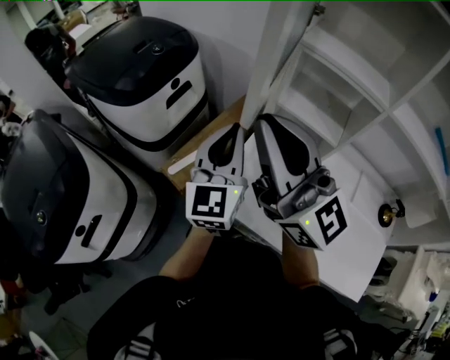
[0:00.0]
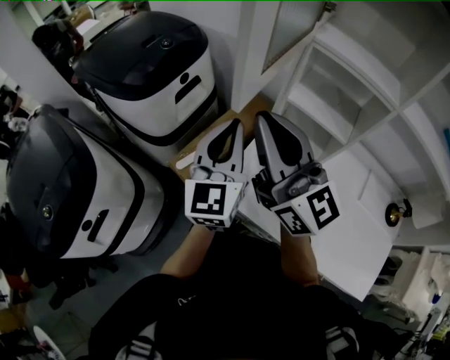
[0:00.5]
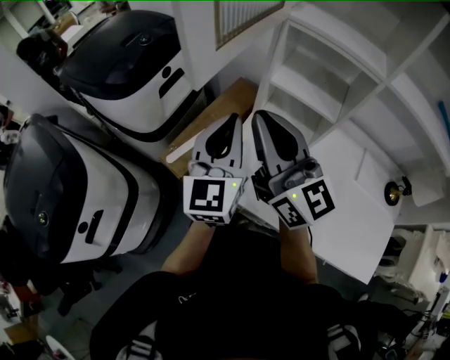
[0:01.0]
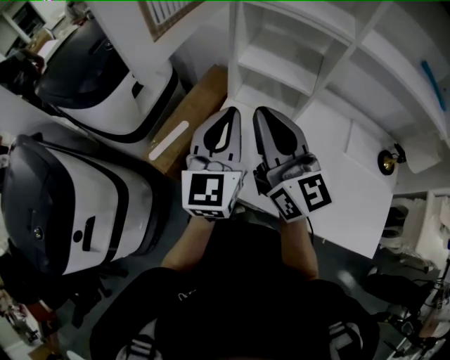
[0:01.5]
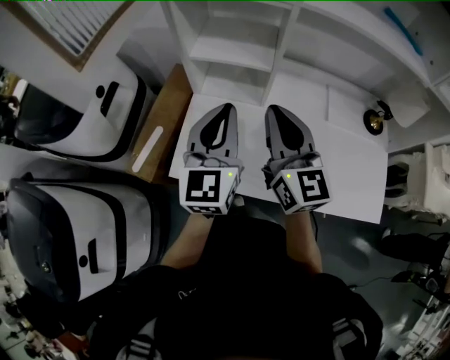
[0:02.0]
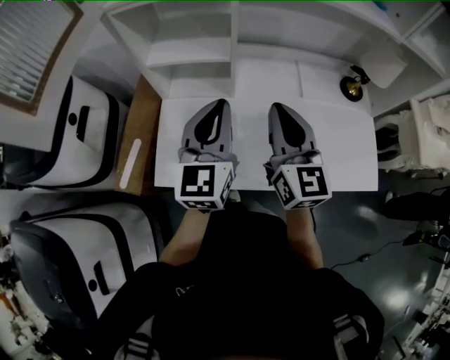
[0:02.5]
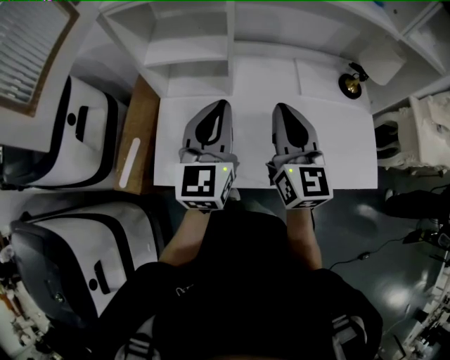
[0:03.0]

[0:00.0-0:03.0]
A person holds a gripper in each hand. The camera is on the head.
0:00.0 to 0:01.5: The right gripper moves downward and to the right, approximately 15 cm, and swivels approximately 30 degrees. The left gripper is displaced to the right by roughly 10 cm.
0:01.5 to 0:03.0: The left gripper ends up roughly 15 cm from where it was, and turns by some 20 degrees, while the right gripper ends up some 25 cm from where it was, and rotates roughly 40 degrees.

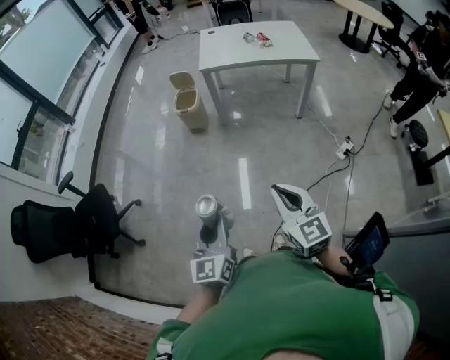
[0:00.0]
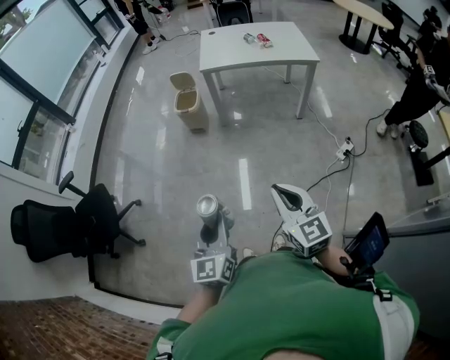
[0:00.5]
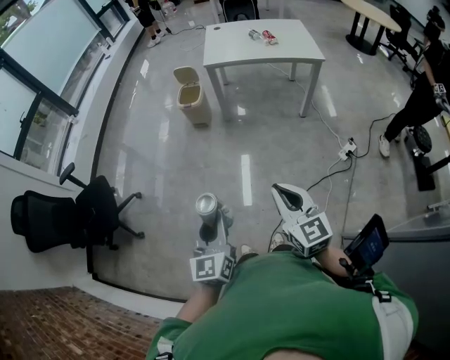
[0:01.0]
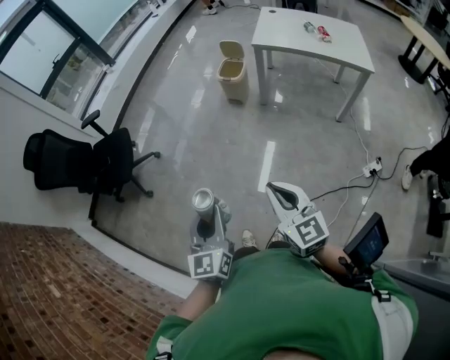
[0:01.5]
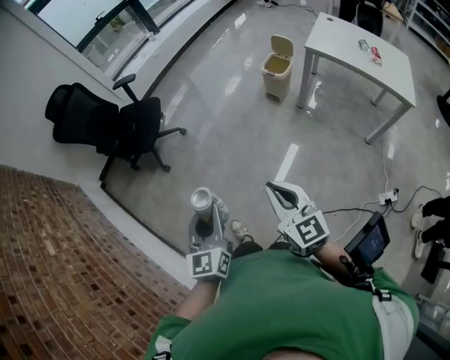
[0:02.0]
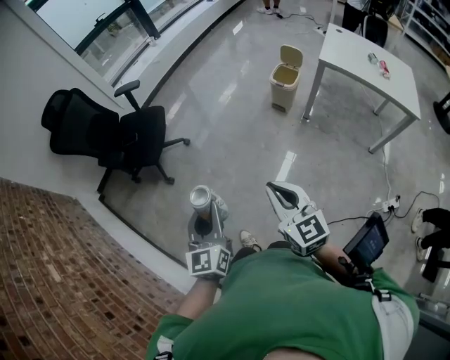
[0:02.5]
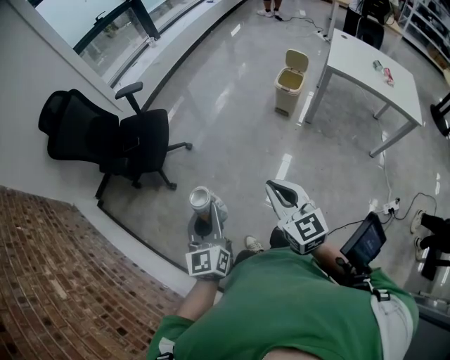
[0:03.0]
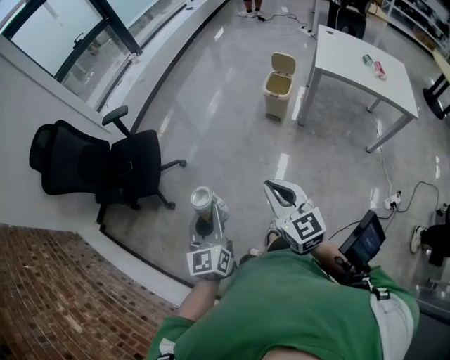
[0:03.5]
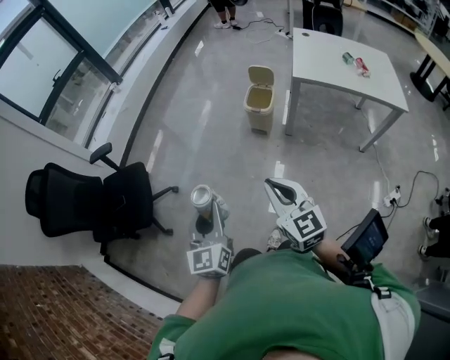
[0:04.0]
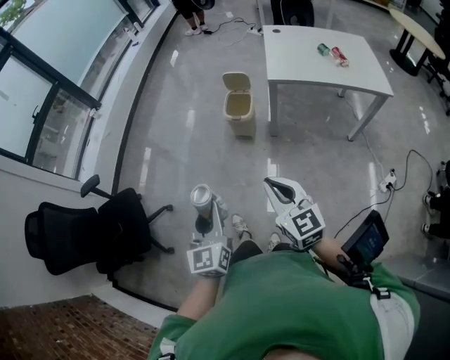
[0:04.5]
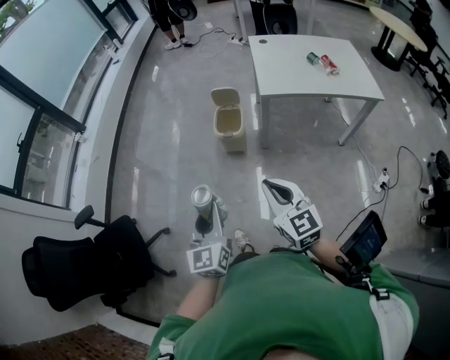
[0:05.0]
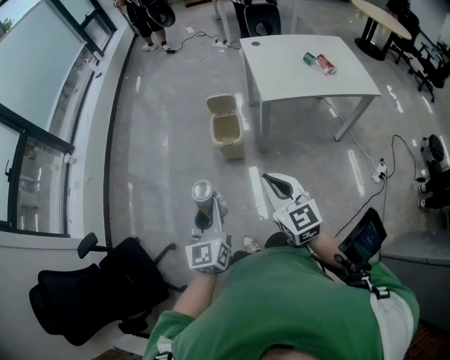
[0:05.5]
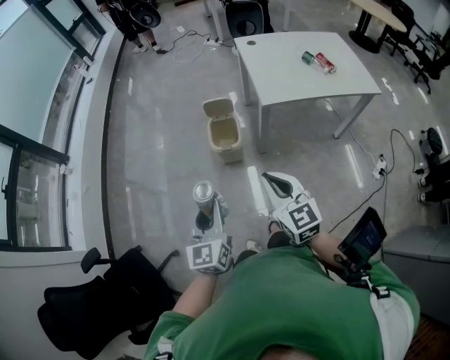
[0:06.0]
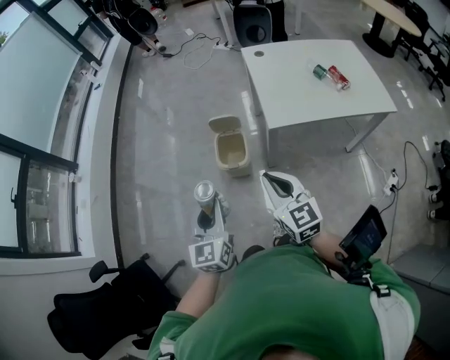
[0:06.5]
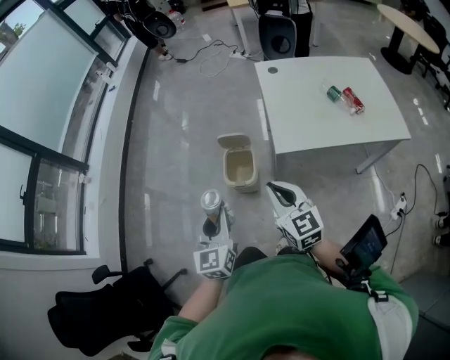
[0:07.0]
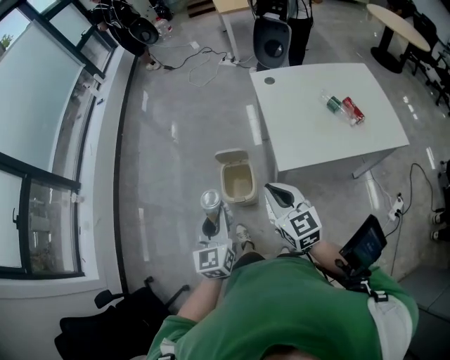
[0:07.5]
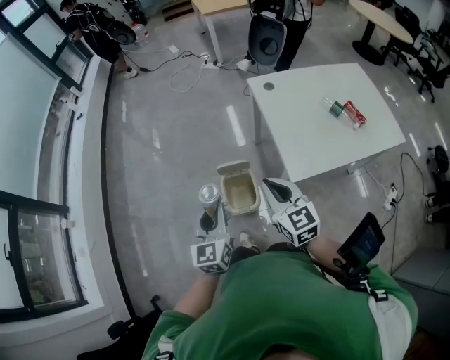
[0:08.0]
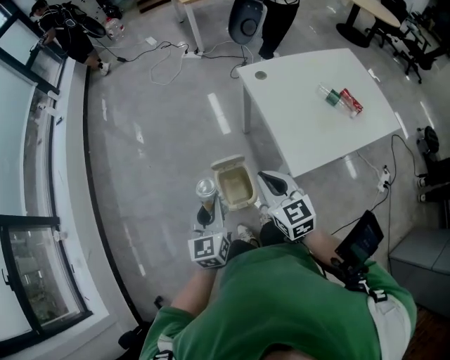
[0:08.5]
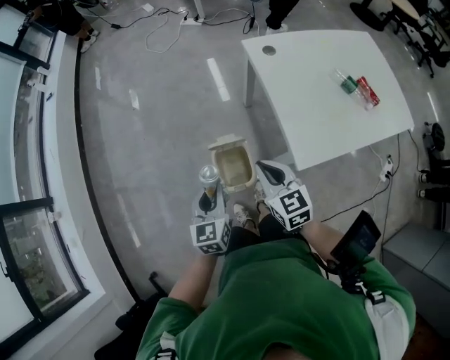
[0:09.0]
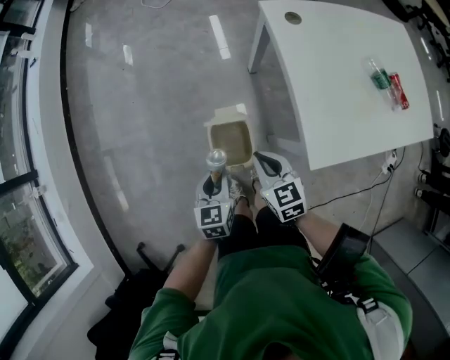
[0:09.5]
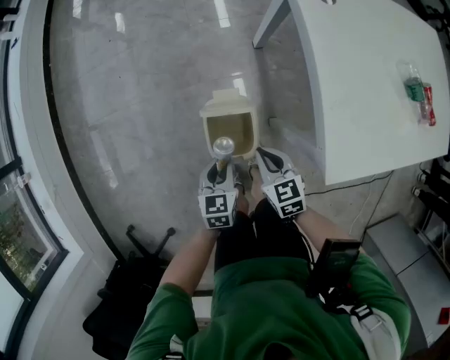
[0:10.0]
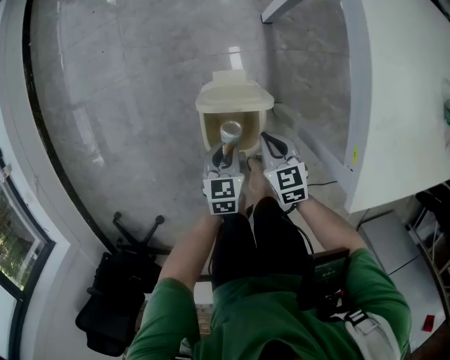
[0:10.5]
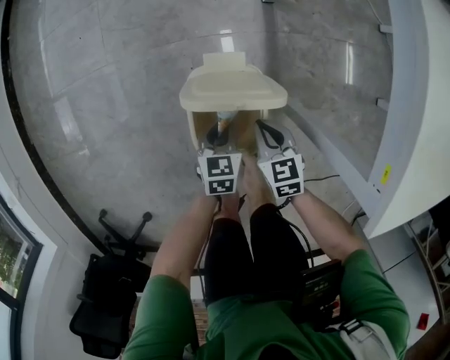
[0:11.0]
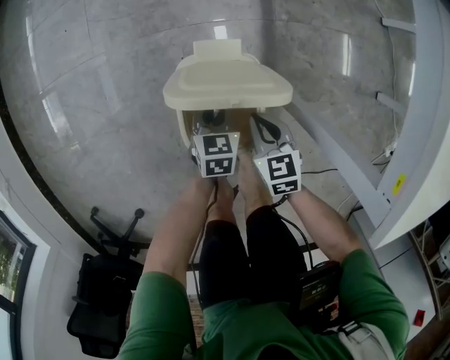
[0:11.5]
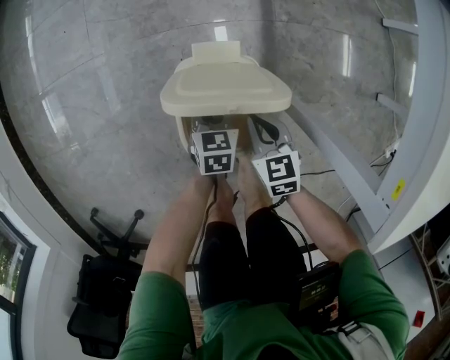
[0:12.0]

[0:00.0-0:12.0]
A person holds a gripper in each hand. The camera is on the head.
0:00.0 to 0:02.0: The left gripper moves some 15 cm, and swivels roughly 30 degrees; the right gripper moves roughly 15 cm, and swivels approximately 40 degrees.
0:02.0 to 0:04.0: Both grippers move forward, roughly 30 cm.
0:04.0 to 0:06.0: The right gripper changes place by some 30 cm, and rotates approximately 20 degrees; the left gripper moves some 35 cm, and turns by about 30 degrees.
0:06.0 to 0:08.0: The grippers both shift forward by about 35 cm.
0:08.0 to 0:10.0: Both grippers travel together downward, approximately 35 cm. The left gripper tips its fingers downward by some 30 degrees; the right gripper turns by approximately 30 degrees.
0:10.0 to 0:12.0: The two grippers go approximately 25 cm downward.

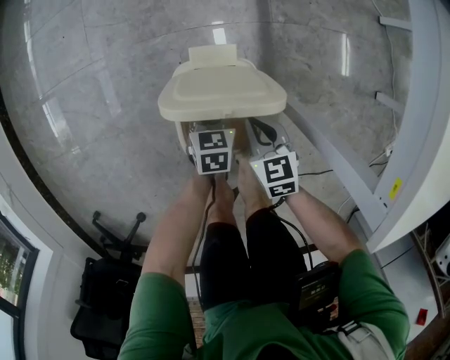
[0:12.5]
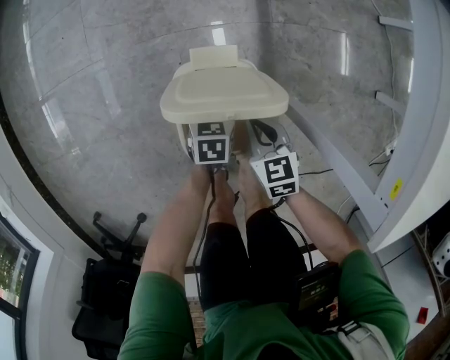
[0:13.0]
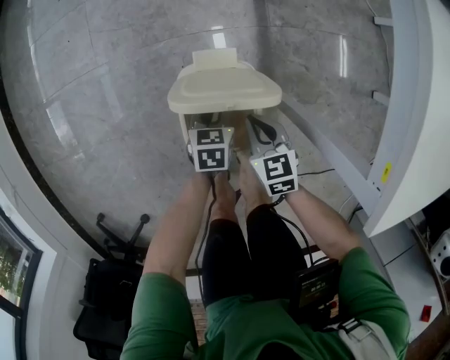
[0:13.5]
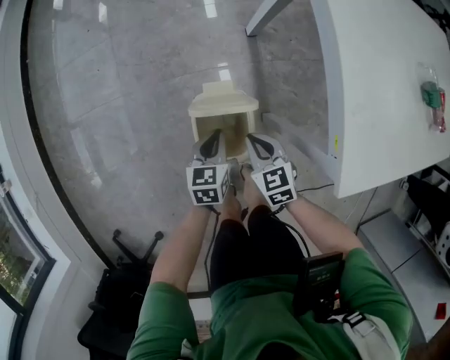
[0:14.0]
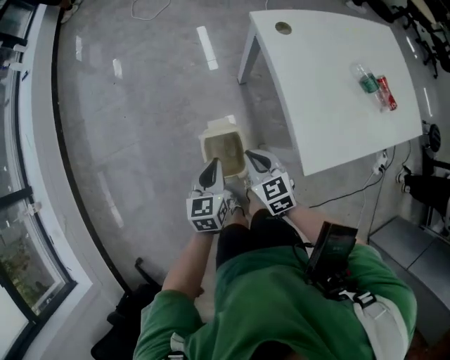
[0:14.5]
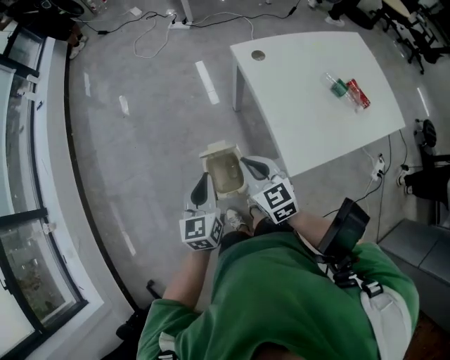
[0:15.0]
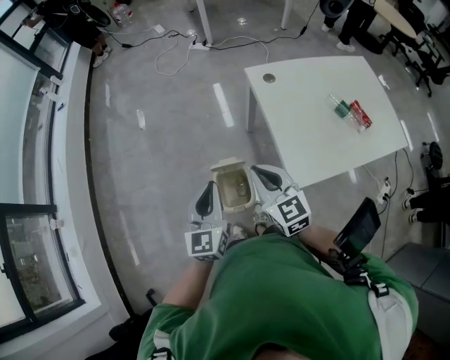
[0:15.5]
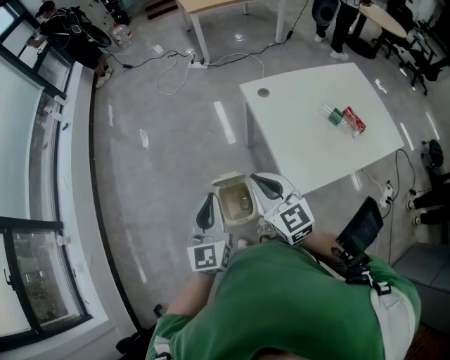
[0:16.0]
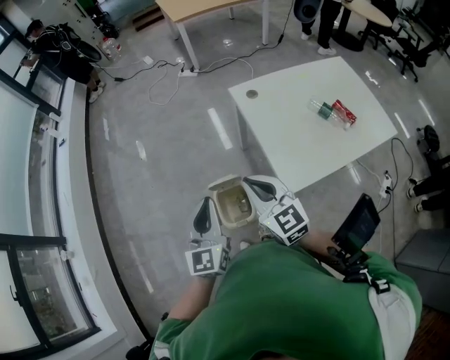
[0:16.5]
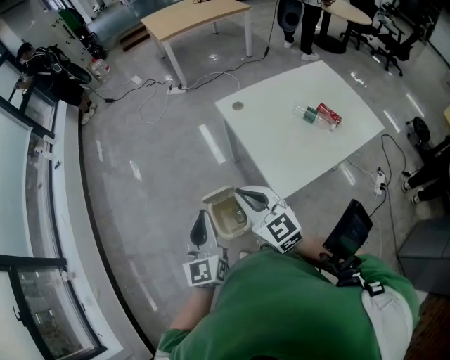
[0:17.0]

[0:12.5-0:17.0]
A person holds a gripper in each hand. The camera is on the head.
0:12.5 to 0:14.5: The grippers both shift upward by some 40 cm. The left gripper turns by approximately 20 degrees.
0:14.5 to 0:17.0: Both grippers travel together upward, about 25 cm. The left gripper rotates about 30 degrees; the right gripper swivels roughly 30 degrees.

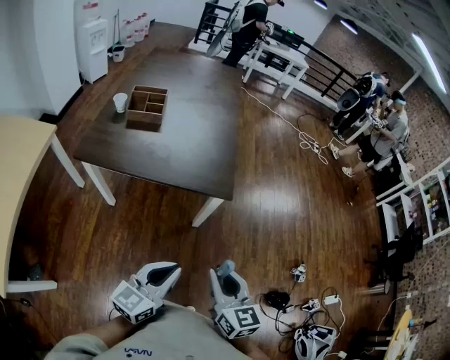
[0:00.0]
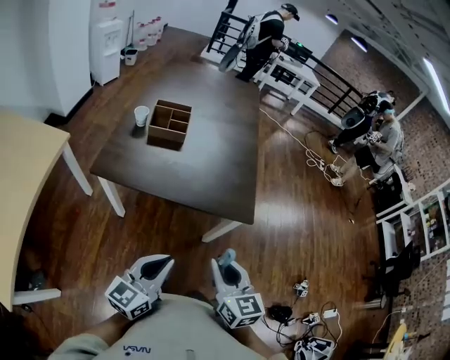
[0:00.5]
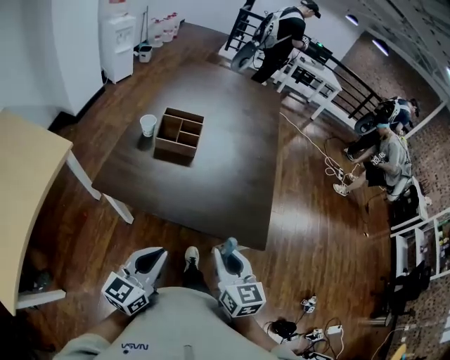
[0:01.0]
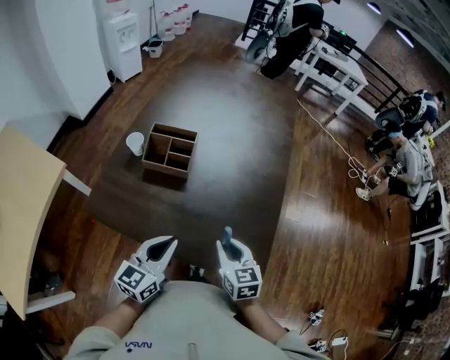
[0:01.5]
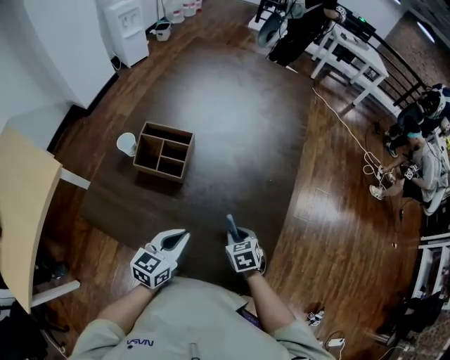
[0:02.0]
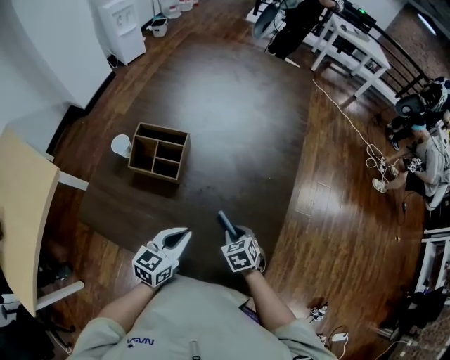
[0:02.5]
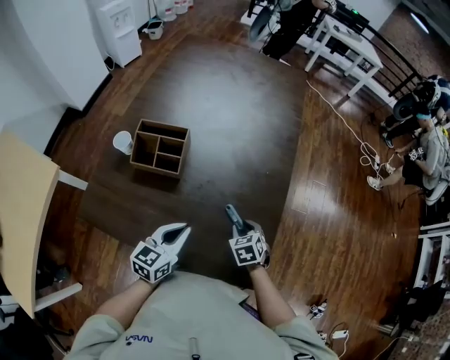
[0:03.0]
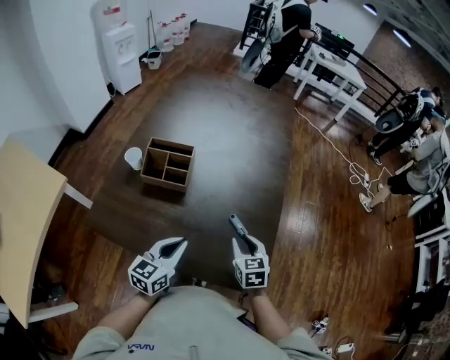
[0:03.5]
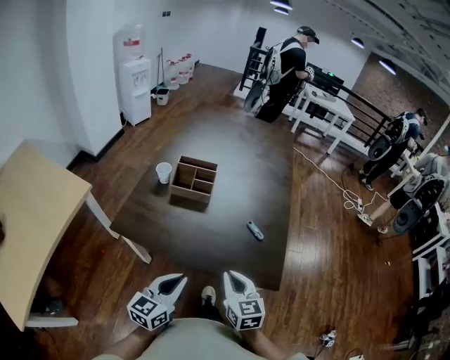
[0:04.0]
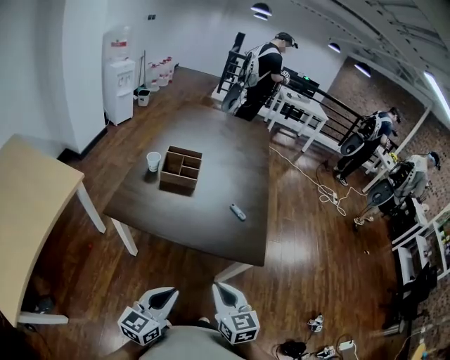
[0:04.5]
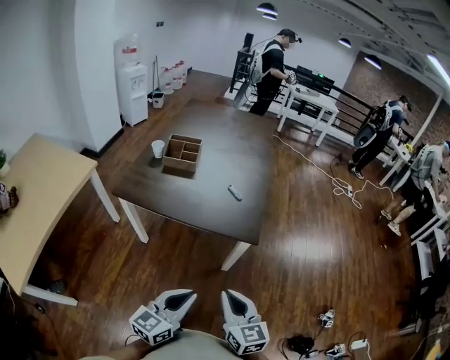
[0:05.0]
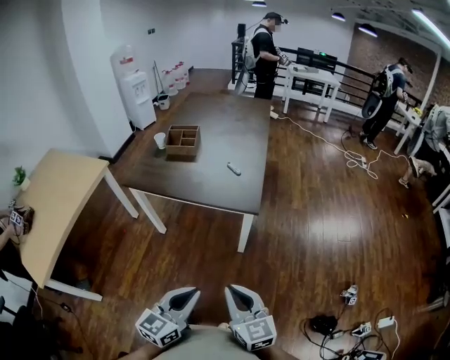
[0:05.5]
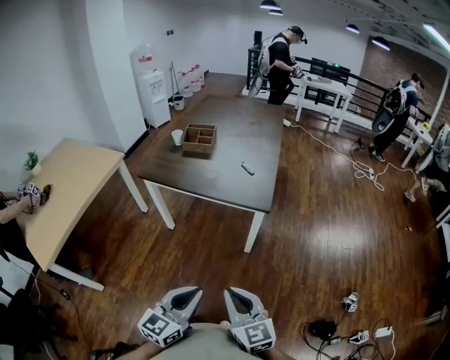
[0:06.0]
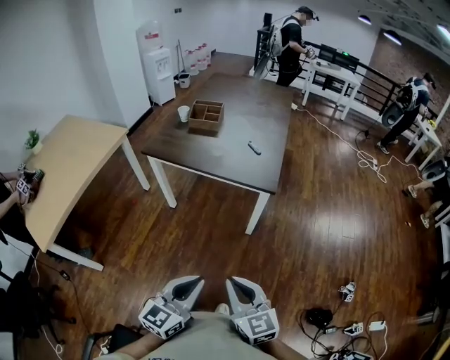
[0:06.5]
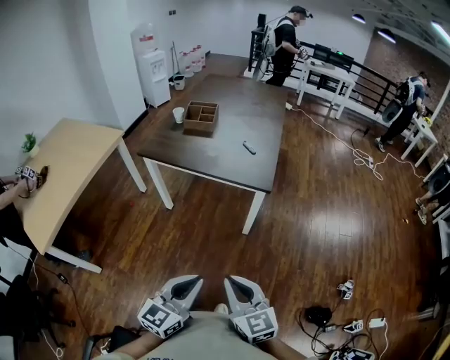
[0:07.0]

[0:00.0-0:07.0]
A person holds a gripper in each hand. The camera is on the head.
0:00.0 to 0:02.0: Both grippers are carried forward, some 40 cm. The left gripper rotates approximately 30 degrees. The right gripper heads downward, covering about 25 cm, and tilts its fingers some 40 degrees downward.
0:02.0 to 0:03.5: The right gripper goes approximately 10 cm upward, and turns by some 20 degrees.
0:03.5 to 0:05.0: The grippers both shift backward by about 40 cm. The right gripper changes its angle by approximately 30 degrees, and closes up.
0:05.0 to 0:07.0: The two grippers go some 15 cm backward.
